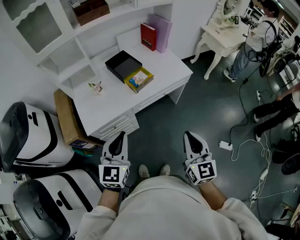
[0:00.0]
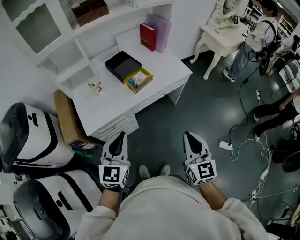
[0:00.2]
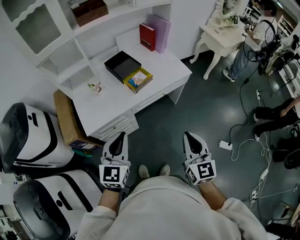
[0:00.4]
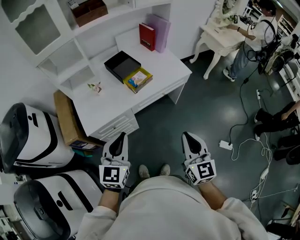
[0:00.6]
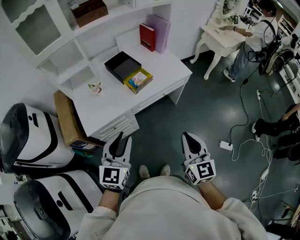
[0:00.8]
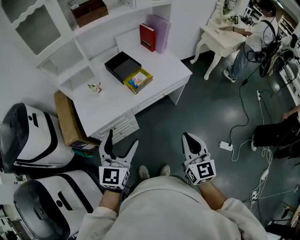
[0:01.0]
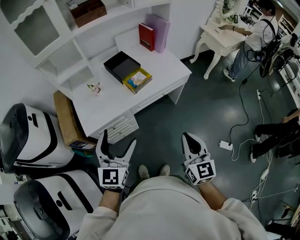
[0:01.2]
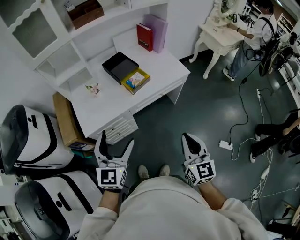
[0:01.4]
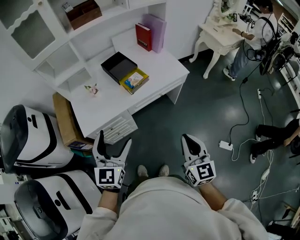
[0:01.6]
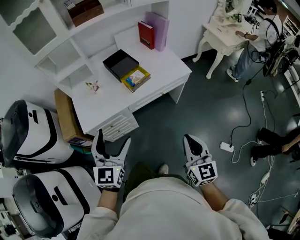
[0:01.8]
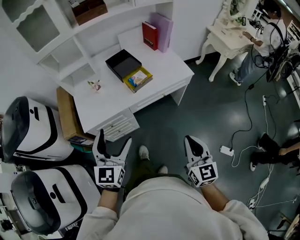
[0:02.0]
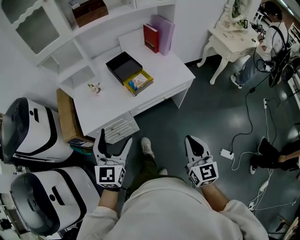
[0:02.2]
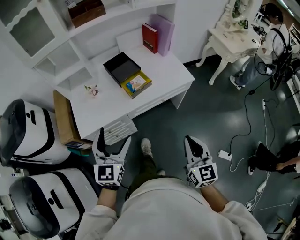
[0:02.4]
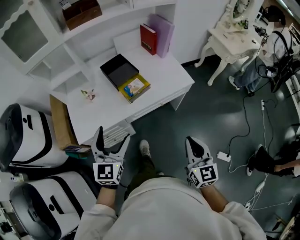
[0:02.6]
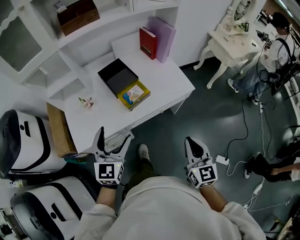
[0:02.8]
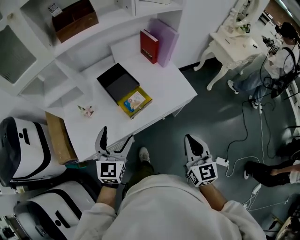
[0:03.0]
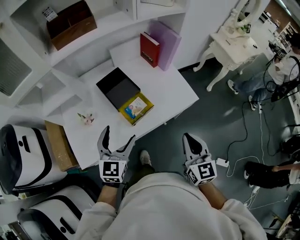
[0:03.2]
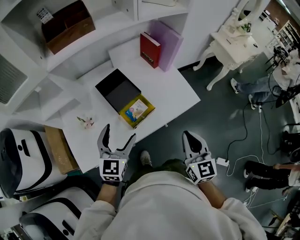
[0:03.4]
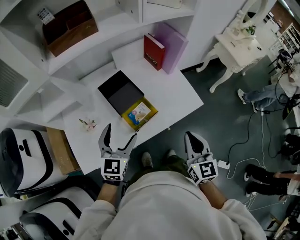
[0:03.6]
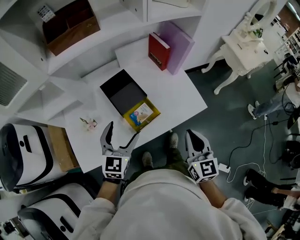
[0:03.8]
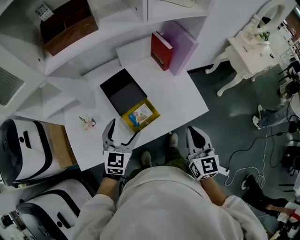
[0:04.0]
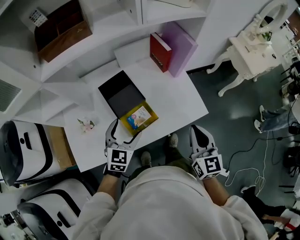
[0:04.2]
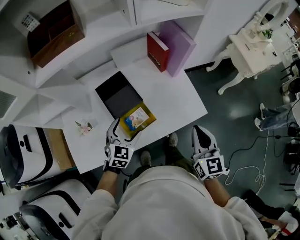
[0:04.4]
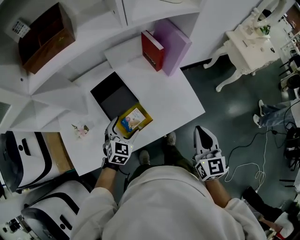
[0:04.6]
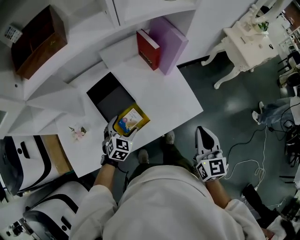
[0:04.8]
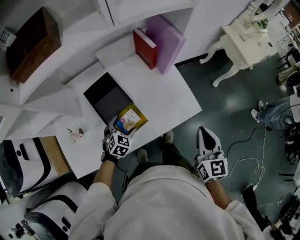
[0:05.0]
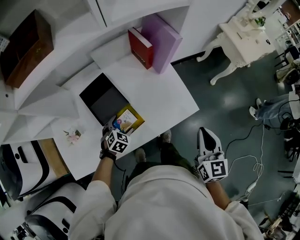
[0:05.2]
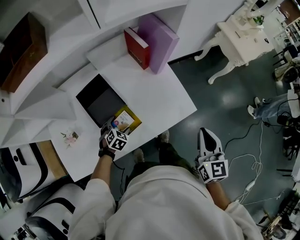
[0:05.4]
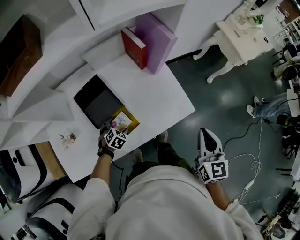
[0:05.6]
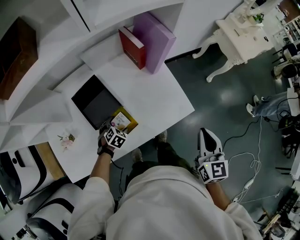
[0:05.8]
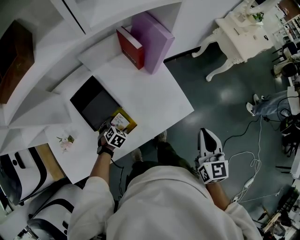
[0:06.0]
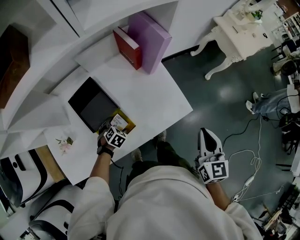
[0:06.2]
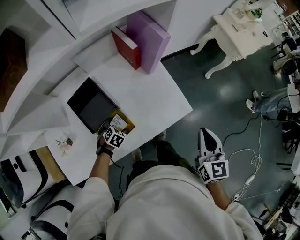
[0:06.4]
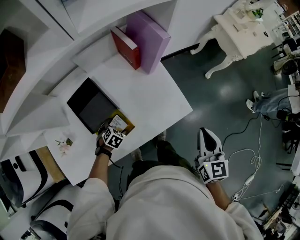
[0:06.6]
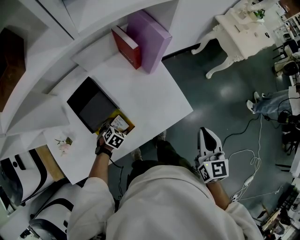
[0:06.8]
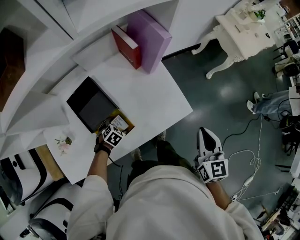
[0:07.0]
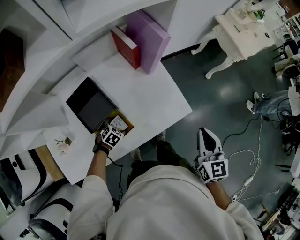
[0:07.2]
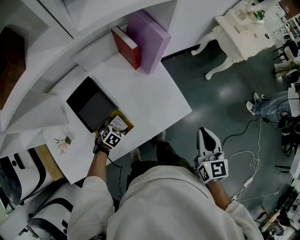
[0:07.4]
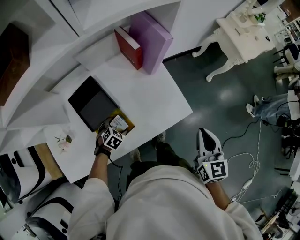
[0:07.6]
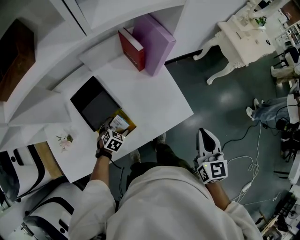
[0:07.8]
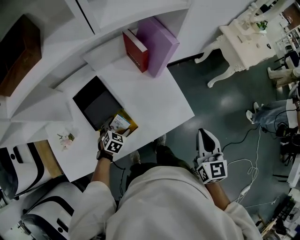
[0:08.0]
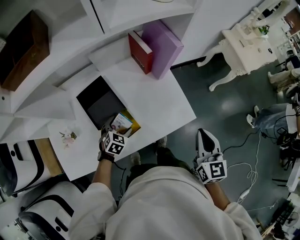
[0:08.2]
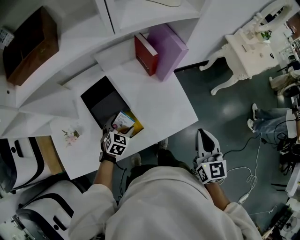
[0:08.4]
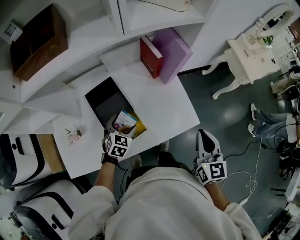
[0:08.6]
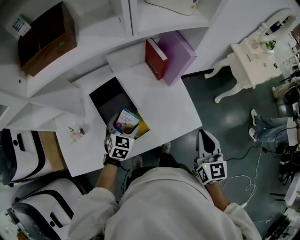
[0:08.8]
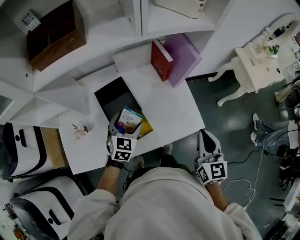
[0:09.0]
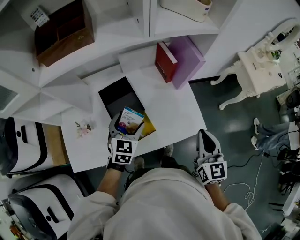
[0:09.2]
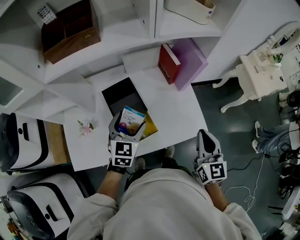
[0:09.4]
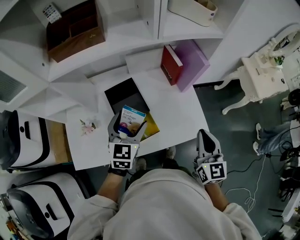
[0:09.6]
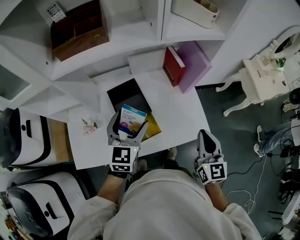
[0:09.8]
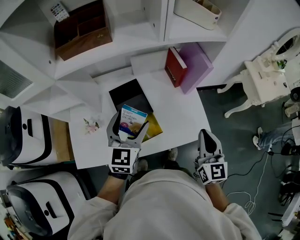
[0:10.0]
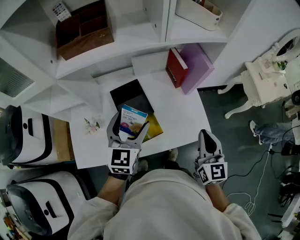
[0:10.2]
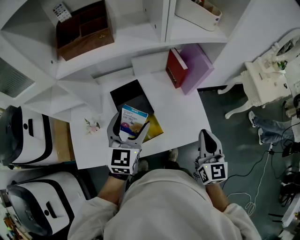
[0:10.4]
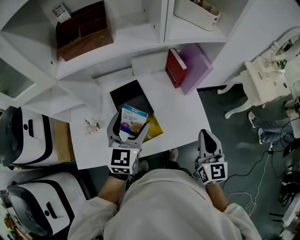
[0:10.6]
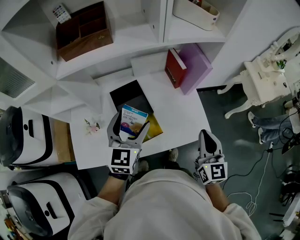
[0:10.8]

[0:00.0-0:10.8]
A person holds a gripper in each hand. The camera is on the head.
0.0 to 1.6 s: The left gripper opens its fingers.
1.6 to 3.0 s: Both grippers travel together forward, about 25 cm.
3.0 to 4.6 s: The left gripper shifts roughly 30 cm forward and downward, and rotates some 30 degrees. Meanwhile the right gripper is displaced forward by some 25 cm.
4.6 to 6.2 s: The right gripper is displaced to the right by about 10 cm. The left gripper goes roughly 20 cm downward, and points its fingers some 30 degrees further downward.
6.2 to 7.8 s: There are only small adjustments of the grippers.
7.8 to 9.2 s: The right gripper travels to the left and upward by roughly 10 cm, while the left gripper goes approximately 25 cm upward, and angles its fingers upward, by about 30 degrees.
9.2 to 10.8 s: The left gripper shifts roughly 15 cm upward.

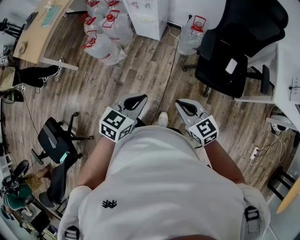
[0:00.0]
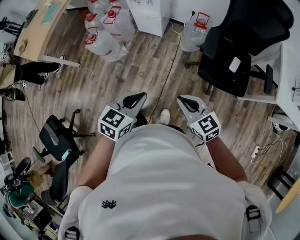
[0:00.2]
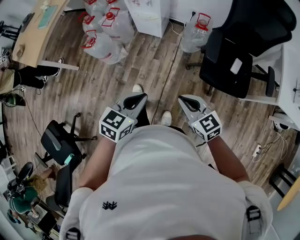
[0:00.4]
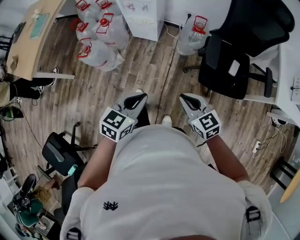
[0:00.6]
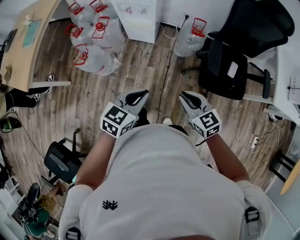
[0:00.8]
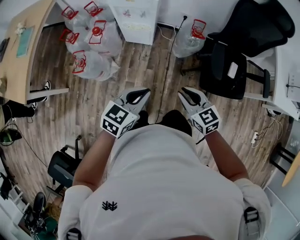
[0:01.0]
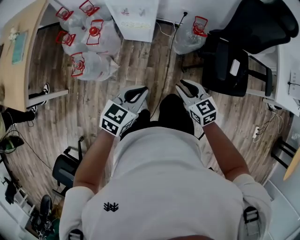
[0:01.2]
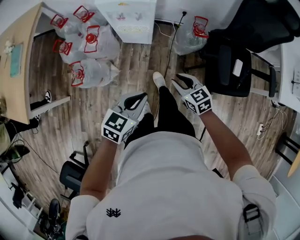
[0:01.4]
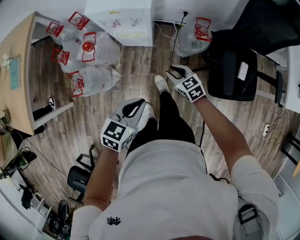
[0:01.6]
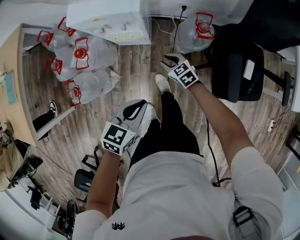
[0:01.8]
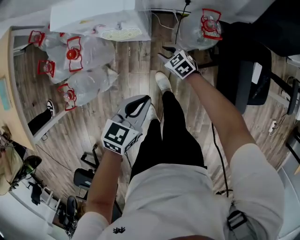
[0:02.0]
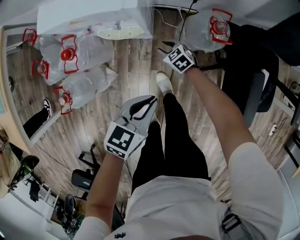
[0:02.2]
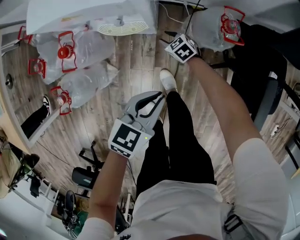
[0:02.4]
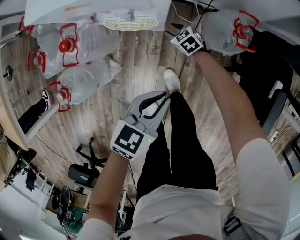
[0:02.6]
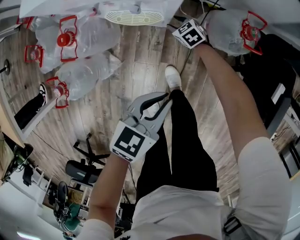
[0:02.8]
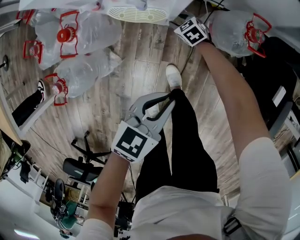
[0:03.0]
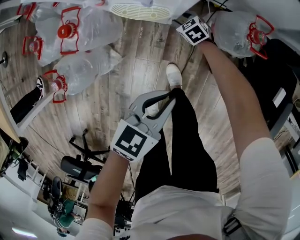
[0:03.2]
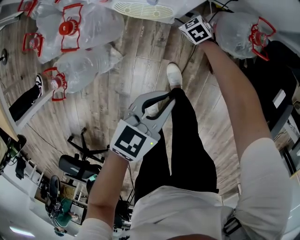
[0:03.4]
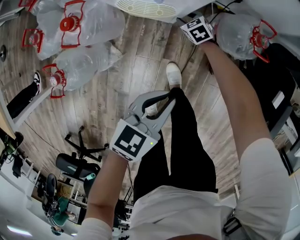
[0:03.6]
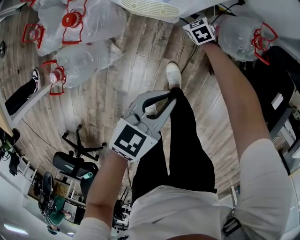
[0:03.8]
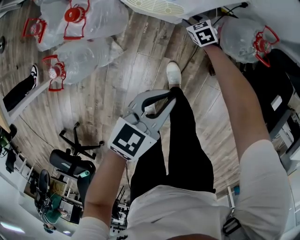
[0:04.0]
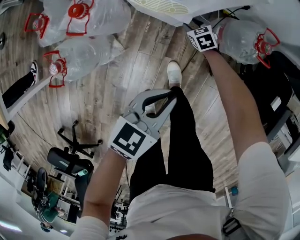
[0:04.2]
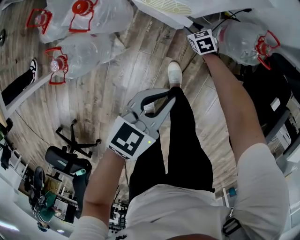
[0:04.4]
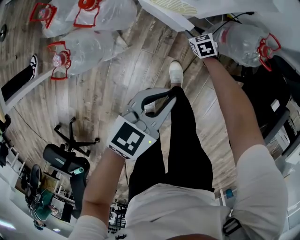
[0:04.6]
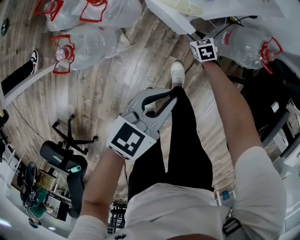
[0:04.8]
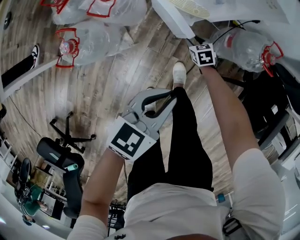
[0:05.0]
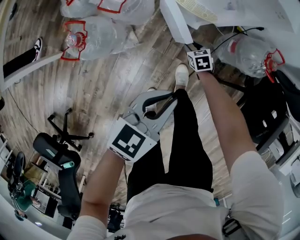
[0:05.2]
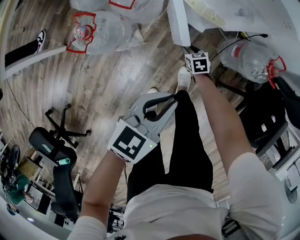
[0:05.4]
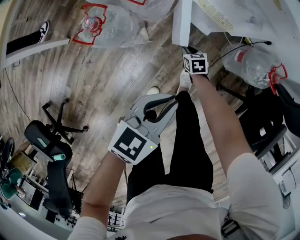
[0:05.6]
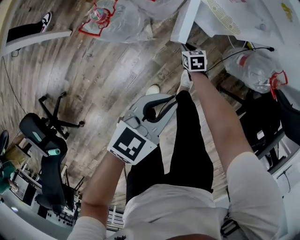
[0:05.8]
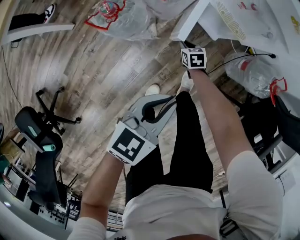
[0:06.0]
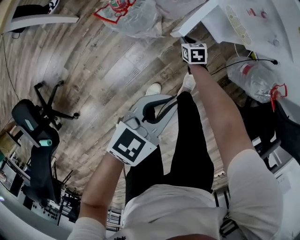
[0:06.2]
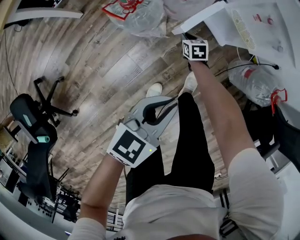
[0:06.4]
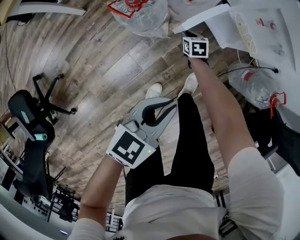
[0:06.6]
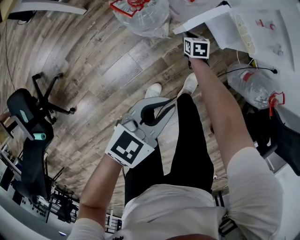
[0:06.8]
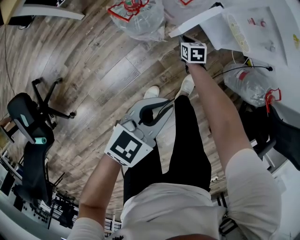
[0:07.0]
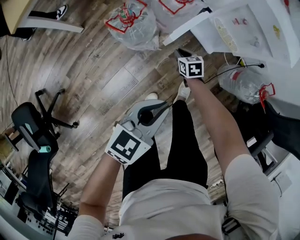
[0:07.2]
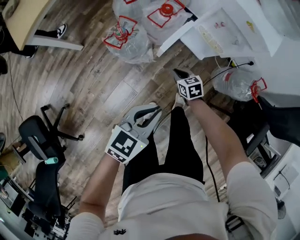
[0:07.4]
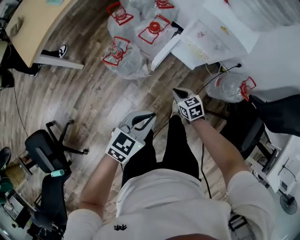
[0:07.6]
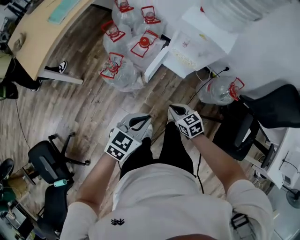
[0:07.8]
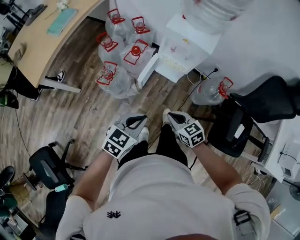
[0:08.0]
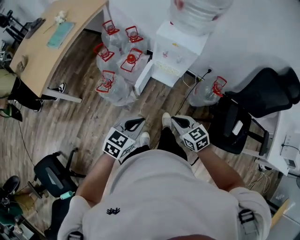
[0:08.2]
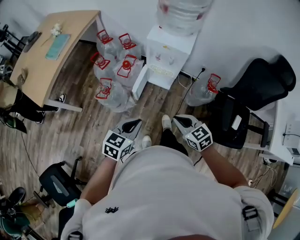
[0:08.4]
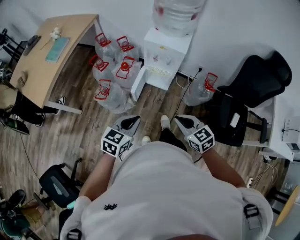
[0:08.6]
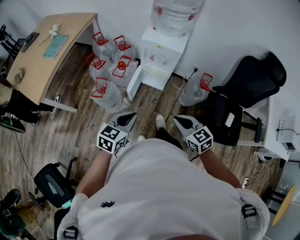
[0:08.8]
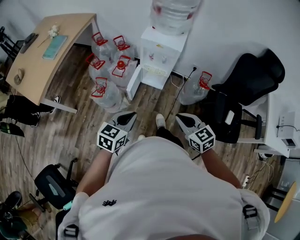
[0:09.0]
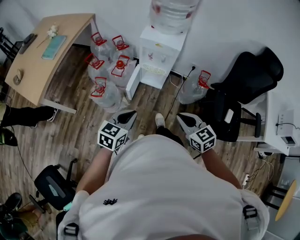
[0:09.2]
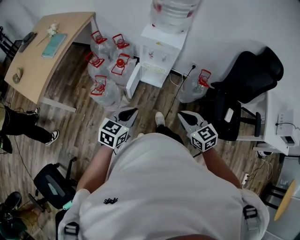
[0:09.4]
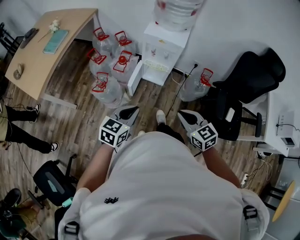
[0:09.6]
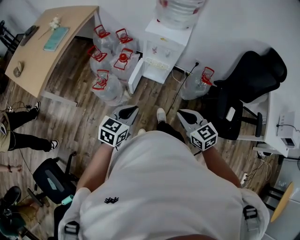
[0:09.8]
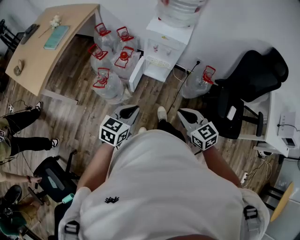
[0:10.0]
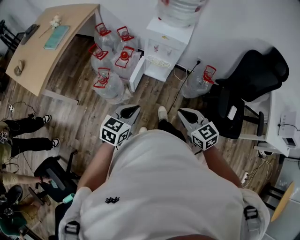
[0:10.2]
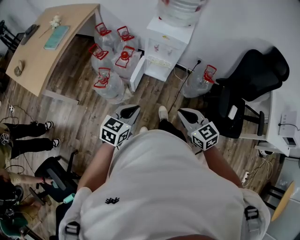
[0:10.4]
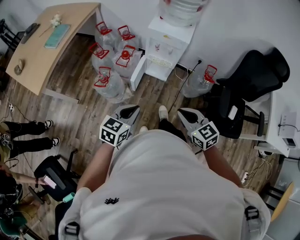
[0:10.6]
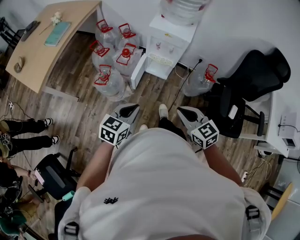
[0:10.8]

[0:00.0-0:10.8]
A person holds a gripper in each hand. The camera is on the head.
0.0 to 1.6 s: The right gripper travels forward and downward by some 50 cm, and turns by about 20 degrees. Meanwhile the left gripper goes approximately 35 cm forward and to the left.
1.6 to 3.0 s: The left gripper goes some 25 cm downward and forward. Meanwhile the right gripper heads downward and forward, covering some 40 cm.
3.0 to 4.6 s: The left gripper heads to the left, covering some 5 cm; the right gripper heads backward, covering some 5 cm.
4.6 to 6.2 s: The two grippers go approximately 25 cm to the left and backward. The right gripper closes its fingers. The left gripper turns by roughly 20 degrees.
6.2 to 7.8 s: The right gripper goes some 40 cm upward and backward, while the left gripper heads upward, covering some 15 cm.
7.8 to 9.2 s: The left gripper is displaced upward and backward by roughly 10 cm. The right gripper shifts about 30 cm upward, backward and to the right, and changes its angle by some 20 degrees.
9.2 to 10.8 s: The grippers make only small movements.

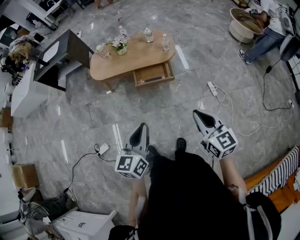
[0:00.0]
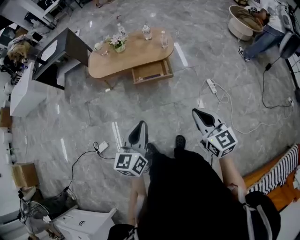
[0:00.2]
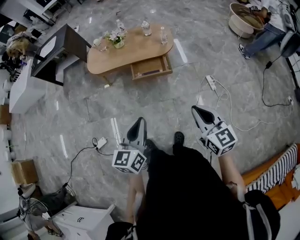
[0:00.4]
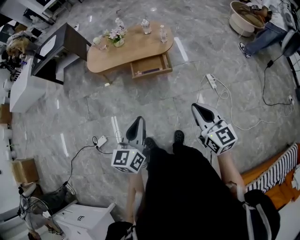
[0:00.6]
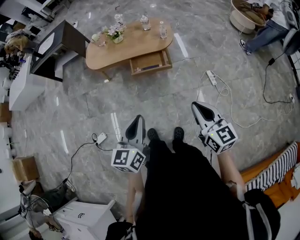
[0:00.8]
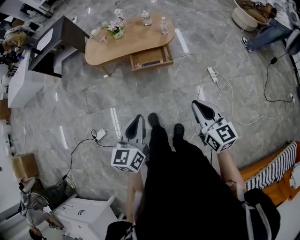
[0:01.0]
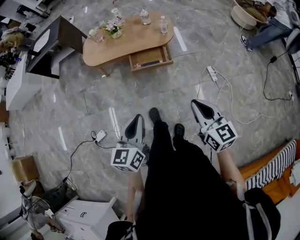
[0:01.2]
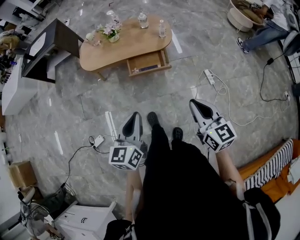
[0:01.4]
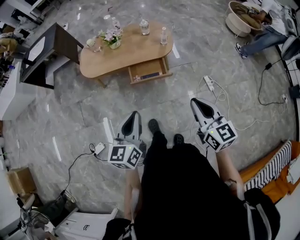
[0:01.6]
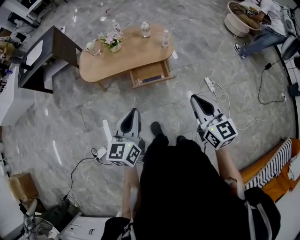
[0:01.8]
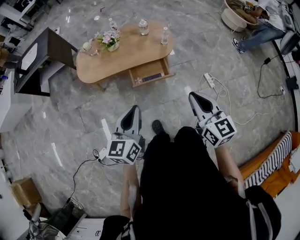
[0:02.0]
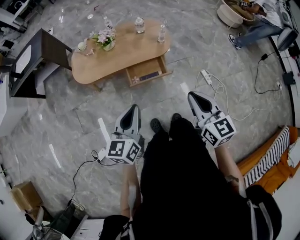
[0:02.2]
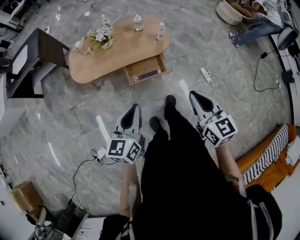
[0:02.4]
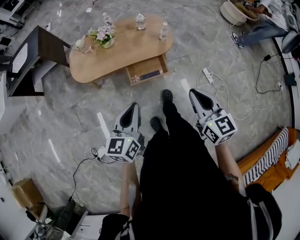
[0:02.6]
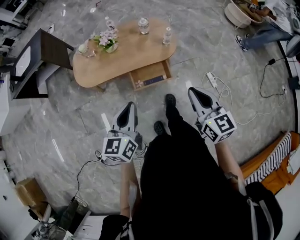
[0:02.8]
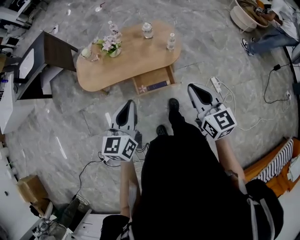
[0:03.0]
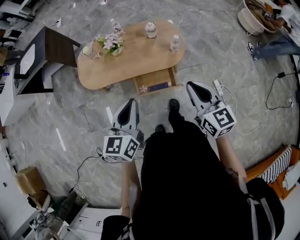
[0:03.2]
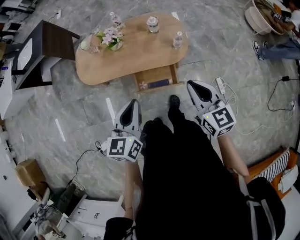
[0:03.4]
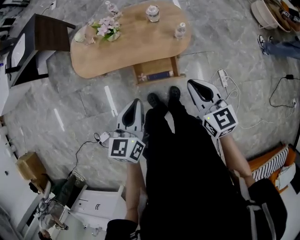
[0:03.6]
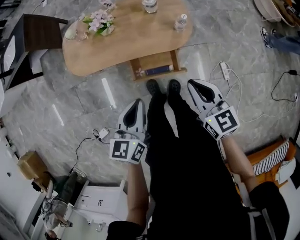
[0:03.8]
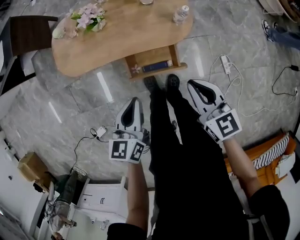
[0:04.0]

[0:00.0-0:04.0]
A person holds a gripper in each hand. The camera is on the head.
0.0 to 1.4 s: The two grippers go roughly 5 cm forward.
1.4 to 2.6 s: Both grippers move forward and to the left, roughly 20 cm.
2.6 to 4.0 s: The two grippers go about 30 cm forward and downward.
